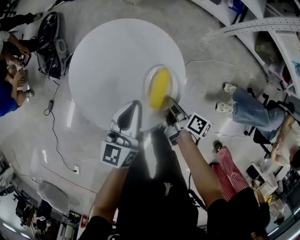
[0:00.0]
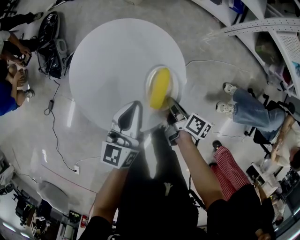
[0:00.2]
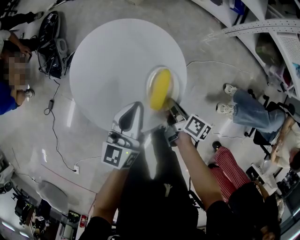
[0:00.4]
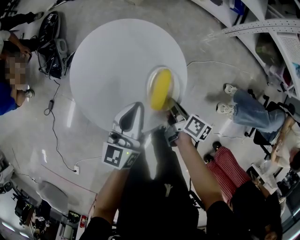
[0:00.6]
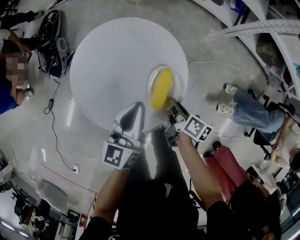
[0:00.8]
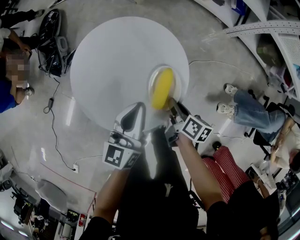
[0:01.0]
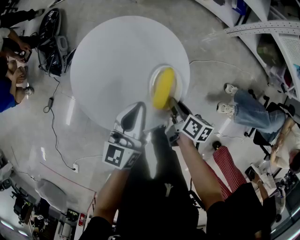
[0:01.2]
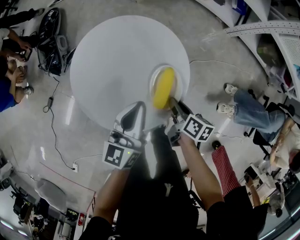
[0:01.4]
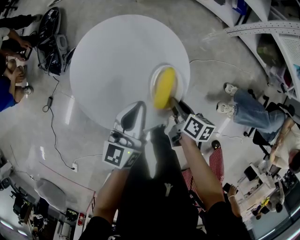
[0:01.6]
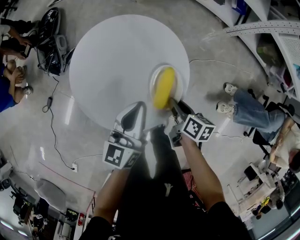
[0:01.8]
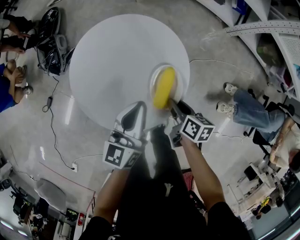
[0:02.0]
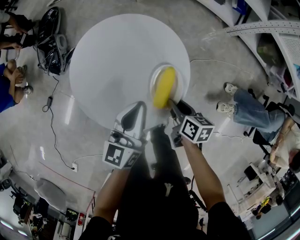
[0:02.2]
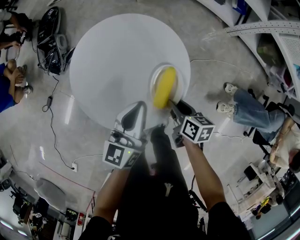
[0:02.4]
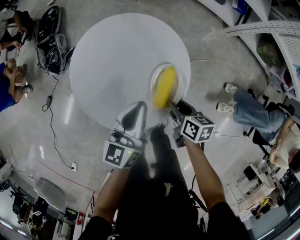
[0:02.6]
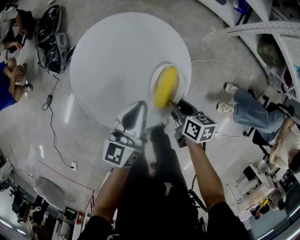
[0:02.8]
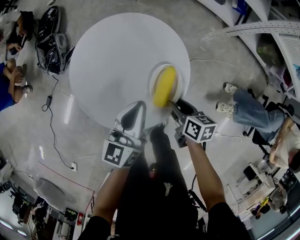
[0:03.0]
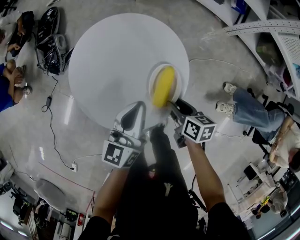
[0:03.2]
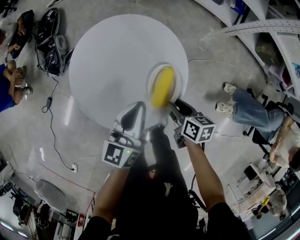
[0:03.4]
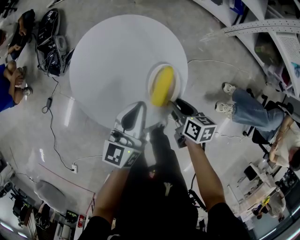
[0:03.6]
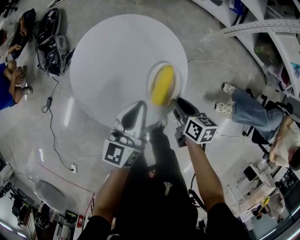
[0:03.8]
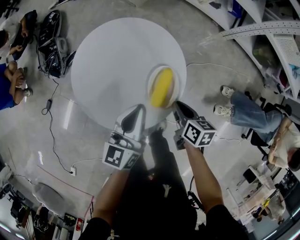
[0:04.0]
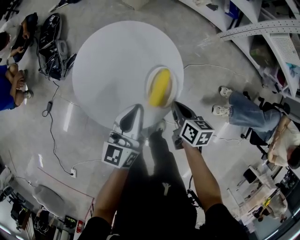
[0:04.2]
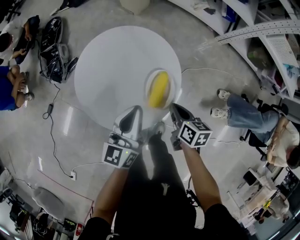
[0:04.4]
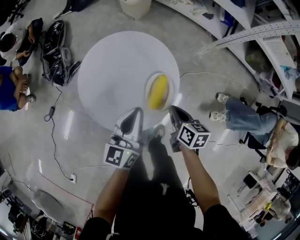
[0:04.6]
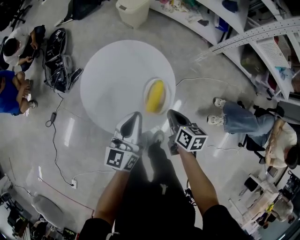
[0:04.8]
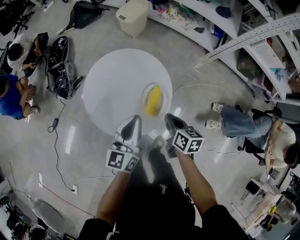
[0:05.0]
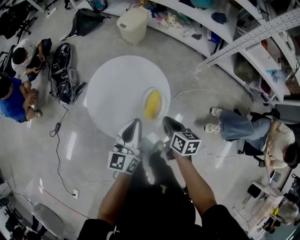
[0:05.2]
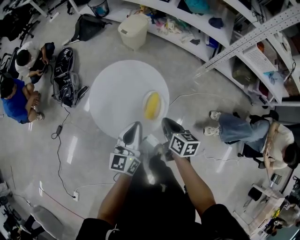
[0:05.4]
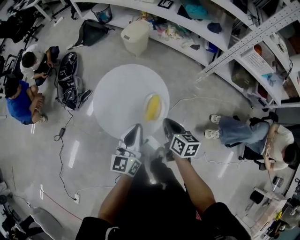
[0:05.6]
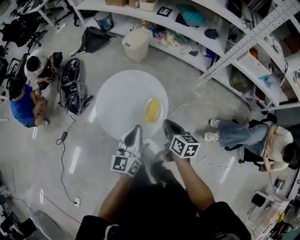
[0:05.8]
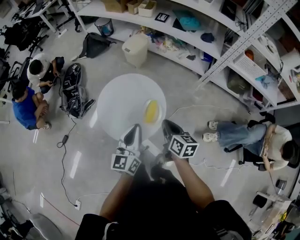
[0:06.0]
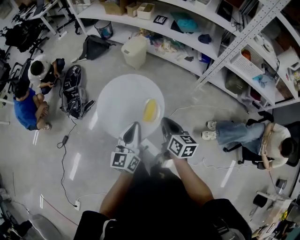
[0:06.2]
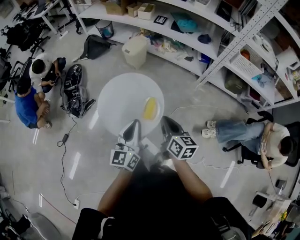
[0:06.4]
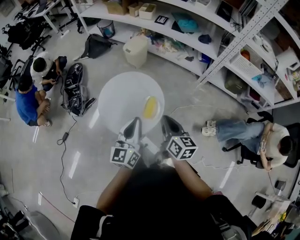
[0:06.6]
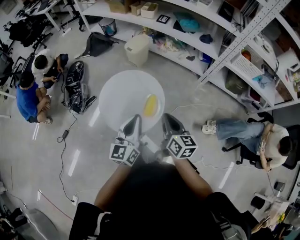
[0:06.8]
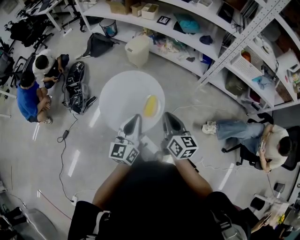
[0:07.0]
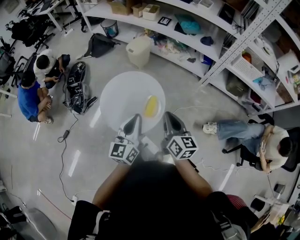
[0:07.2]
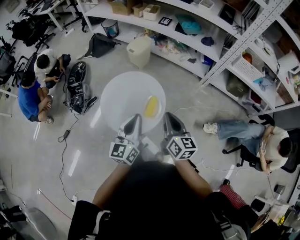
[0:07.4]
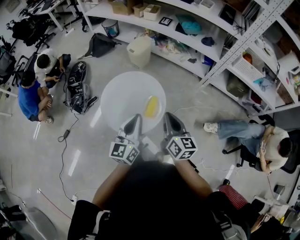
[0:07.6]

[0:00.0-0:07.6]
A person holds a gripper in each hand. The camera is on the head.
3.0 to 4.6 s: The left gripper goes about 5 cm upward.
4.6 to 6.0 s: The left gripper travels upward by roughly 15 cm.
6.0 to 7.6 s: The left gripper shifts roughly 5 cm upward.

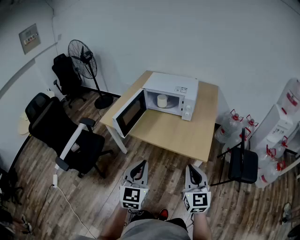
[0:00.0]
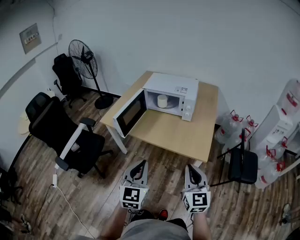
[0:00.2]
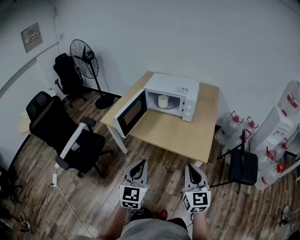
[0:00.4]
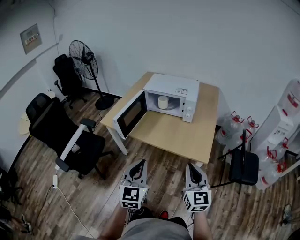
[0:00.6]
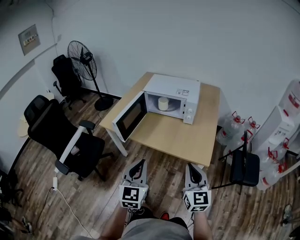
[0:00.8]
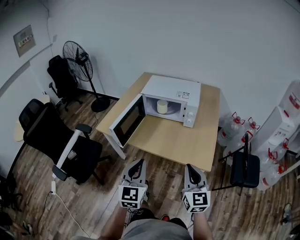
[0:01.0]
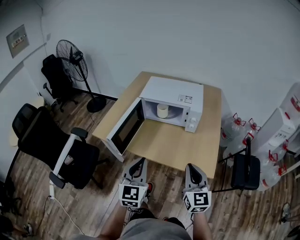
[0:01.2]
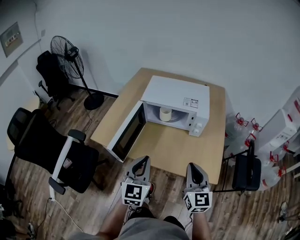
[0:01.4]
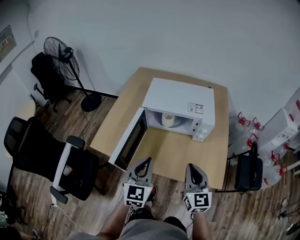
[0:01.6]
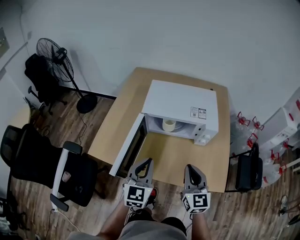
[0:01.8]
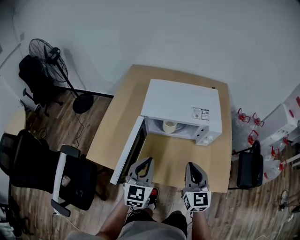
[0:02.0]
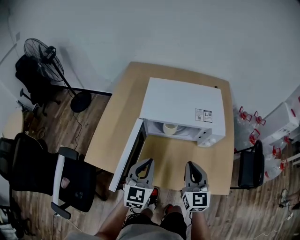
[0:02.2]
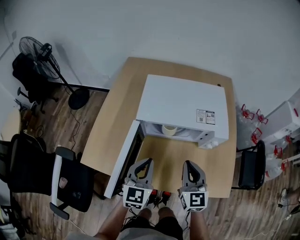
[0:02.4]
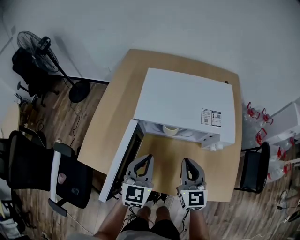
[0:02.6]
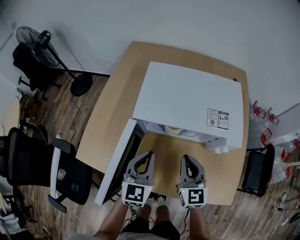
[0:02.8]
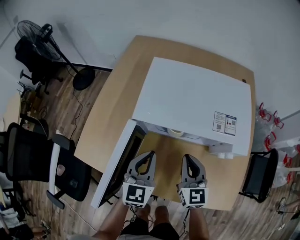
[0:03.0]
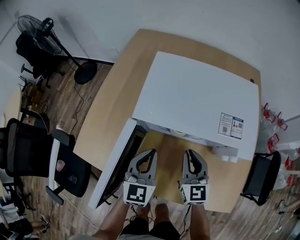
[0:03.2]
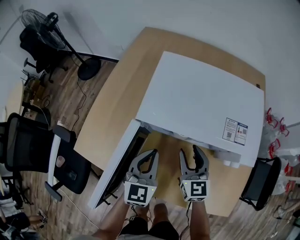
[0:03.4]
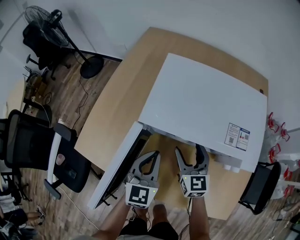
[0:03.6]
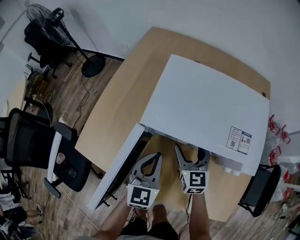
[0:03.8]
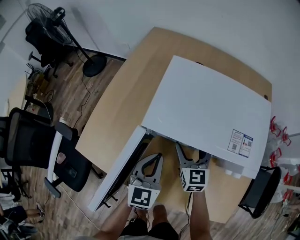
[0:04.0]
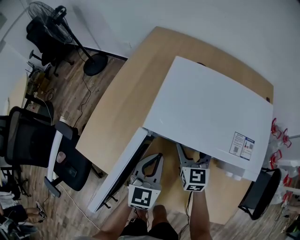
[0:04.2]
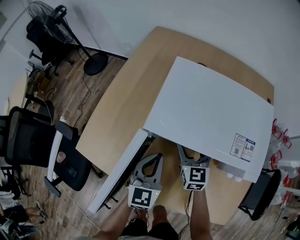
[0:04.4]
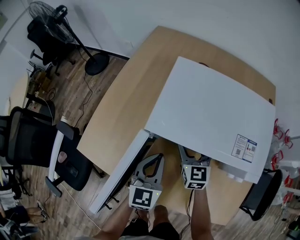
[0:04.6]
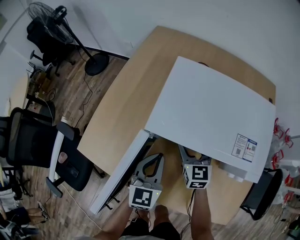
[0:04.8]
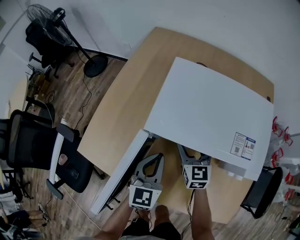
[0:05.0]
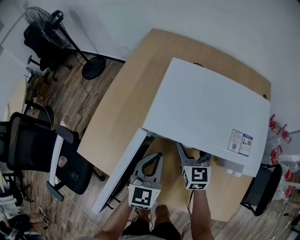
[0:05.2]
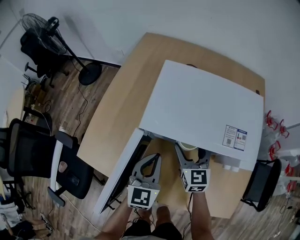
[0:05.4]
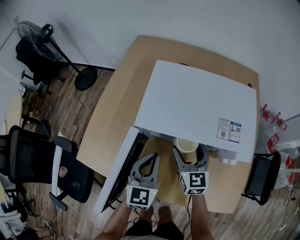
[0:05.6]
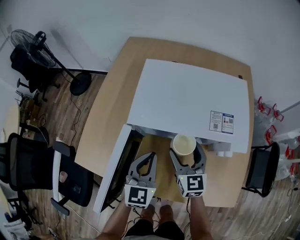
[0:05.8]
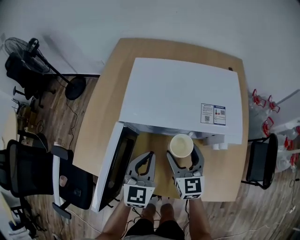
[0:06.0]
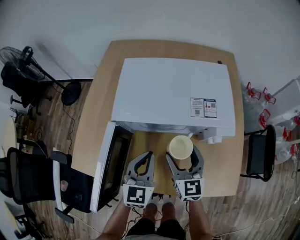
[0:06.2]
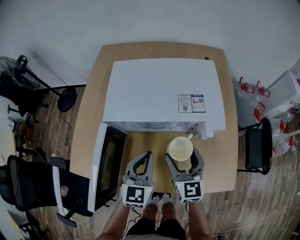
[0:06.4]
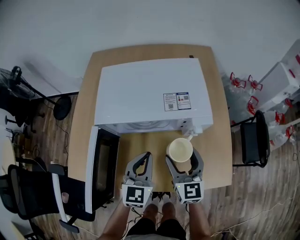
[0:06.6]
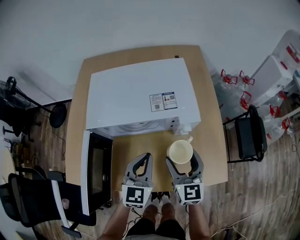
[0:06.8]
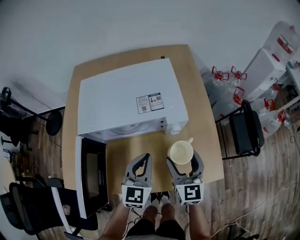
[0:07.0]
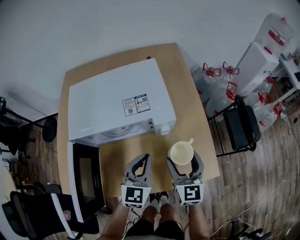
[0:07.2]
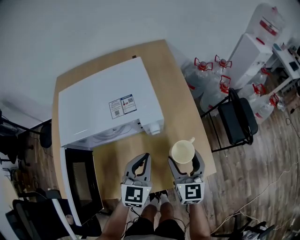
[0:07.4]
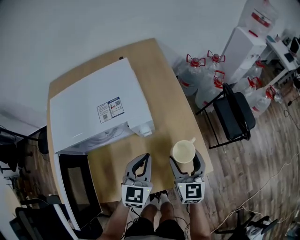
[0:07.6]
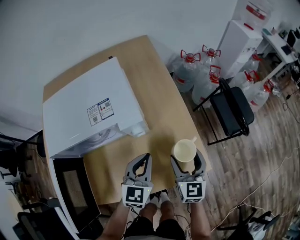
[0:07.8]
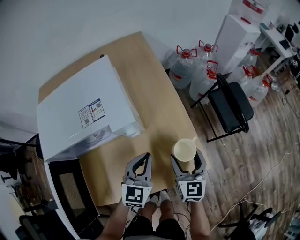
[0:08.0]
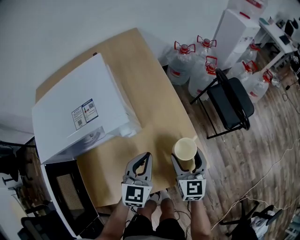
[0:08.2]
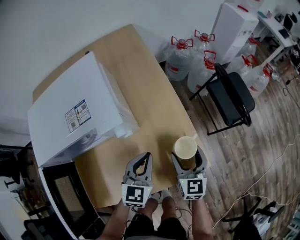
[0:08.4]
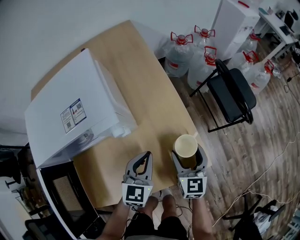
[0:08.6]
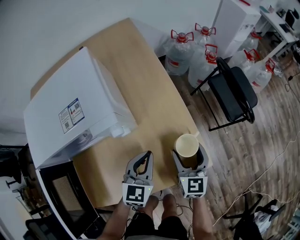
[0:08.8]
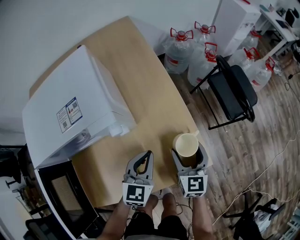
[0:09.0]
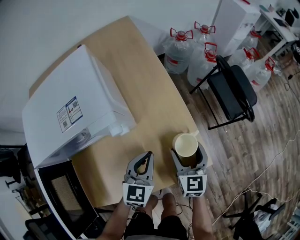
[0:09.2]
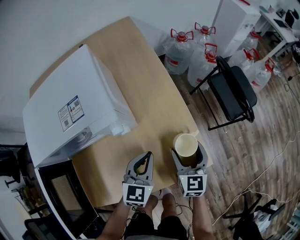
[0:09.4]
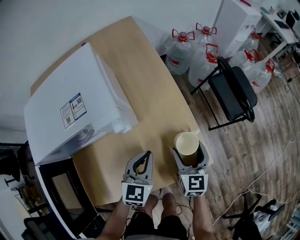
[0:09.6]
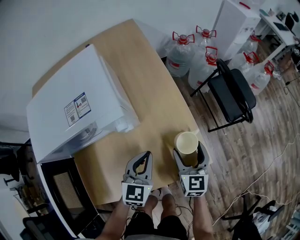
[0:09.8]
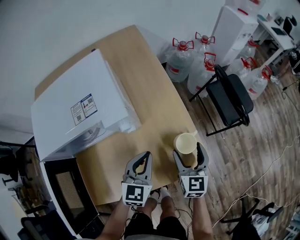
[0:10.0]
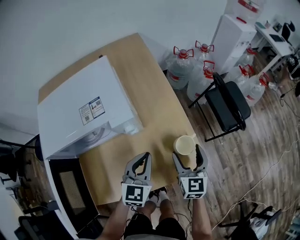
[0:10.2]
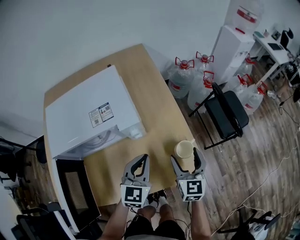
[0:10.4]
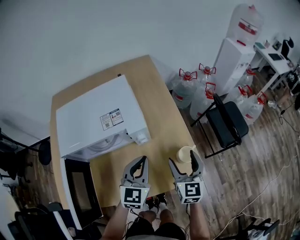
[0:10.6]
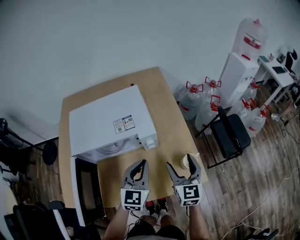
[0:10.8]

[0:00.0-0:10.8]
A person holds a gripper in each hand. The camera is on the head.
0.0 to 1.6 s: Both grippers move forward, roughly 30 cm.
1.6 to 3.0 s: The grippers both shift forward and downward by approximately 25 cm.
3.0 to 4.6 s: The right gripper travels forward and downward by roughly 15 cm, and opens its fingers.
4.6 to 6.2 s: The left gripper goes some 10 cm to the right and backward. The right gripper heads backward, upward and to the right, covering roughly 15 cm.
6.2 to 7.8 s: The right gripper ends up about 30 cm from where it was, and swivels roughly 30 degrees. Meanwhile the left gripper shifts by about 25 cm, and rotates roughly 30 degrees.
7.8 to 9.2 s: The two grippers go about 10 cm downward.
9.2 to 10.8 s: Both grippers travel together upward and to the left, some 20 cm.

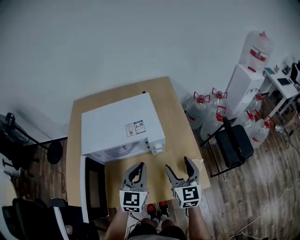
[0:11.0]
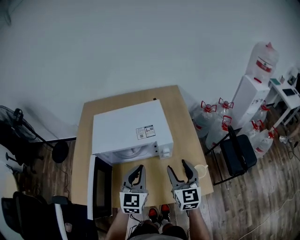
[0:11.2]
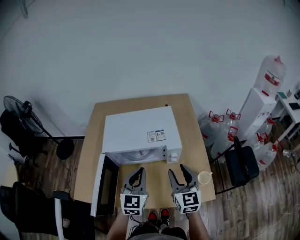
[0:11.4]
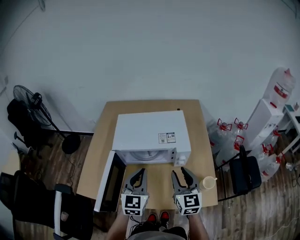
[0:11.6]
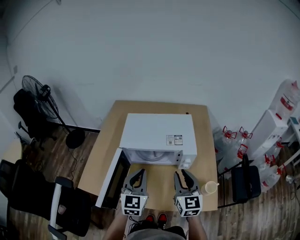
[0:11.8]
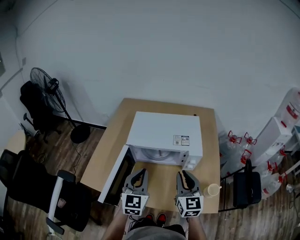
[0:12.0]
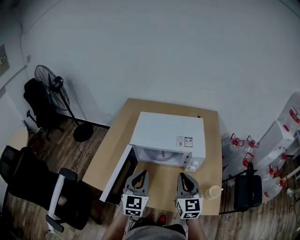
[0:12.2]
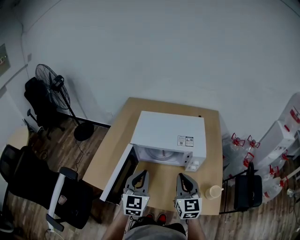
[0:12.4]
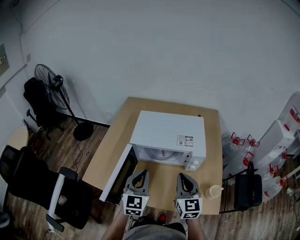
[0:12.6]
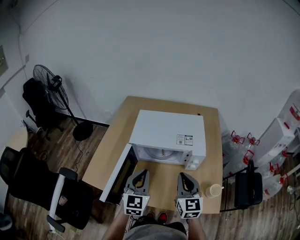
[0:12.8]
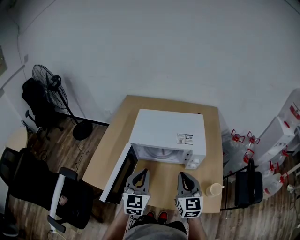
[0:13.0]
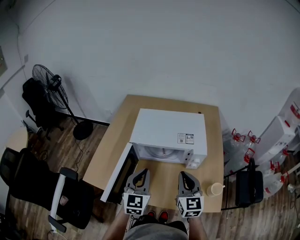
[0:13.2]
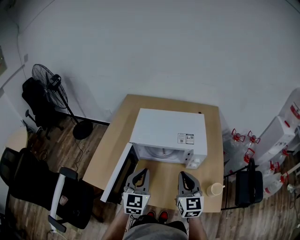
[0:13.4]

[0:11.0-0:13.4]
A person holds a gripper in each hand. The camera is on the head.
11.0 to 12.2 s: The right gripper shifts about 15 cm to the left and upward, rotates approximately 20 degrees, and closes up. Meanwhile the left gripper moves to the left, roughly 15 cm, and changes its angle by roughly 20 degrees.
12.2 to 13.4 s: Both grippers stay about where they are.

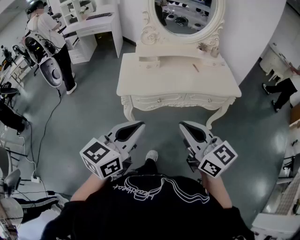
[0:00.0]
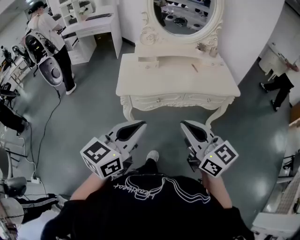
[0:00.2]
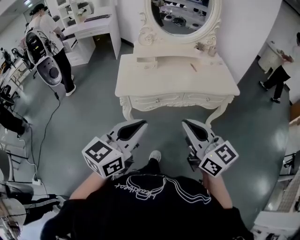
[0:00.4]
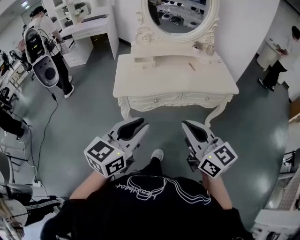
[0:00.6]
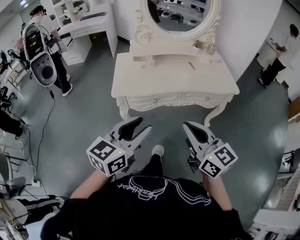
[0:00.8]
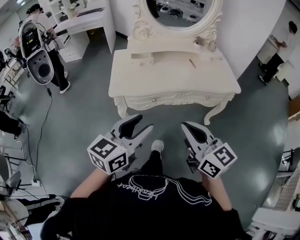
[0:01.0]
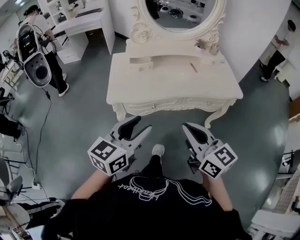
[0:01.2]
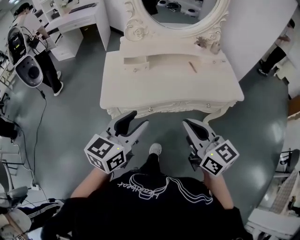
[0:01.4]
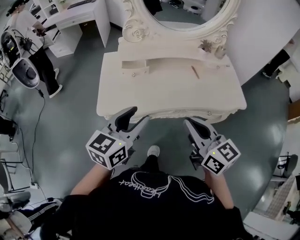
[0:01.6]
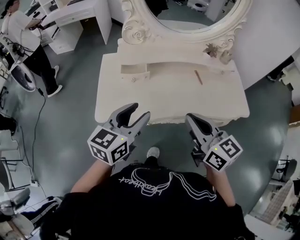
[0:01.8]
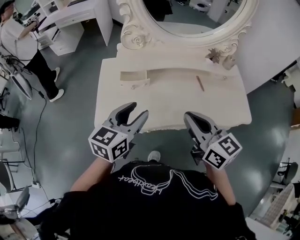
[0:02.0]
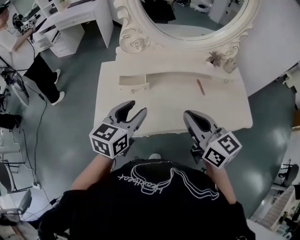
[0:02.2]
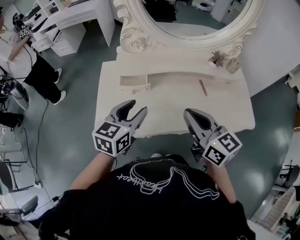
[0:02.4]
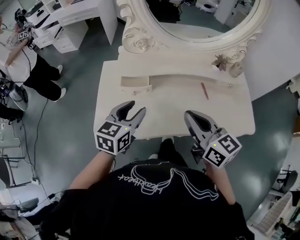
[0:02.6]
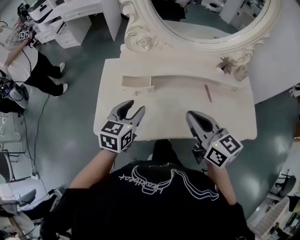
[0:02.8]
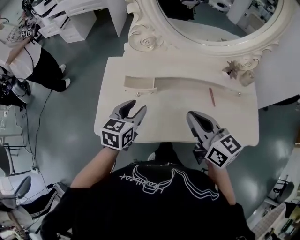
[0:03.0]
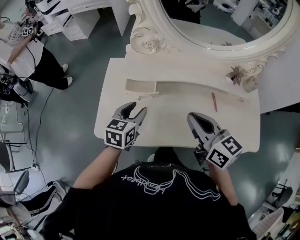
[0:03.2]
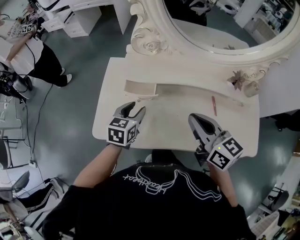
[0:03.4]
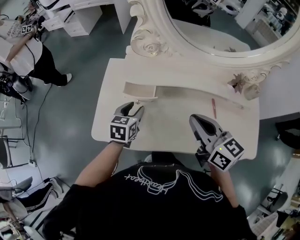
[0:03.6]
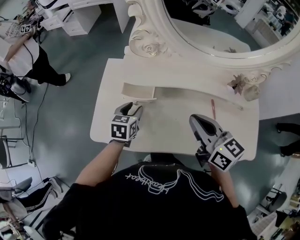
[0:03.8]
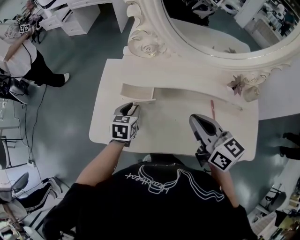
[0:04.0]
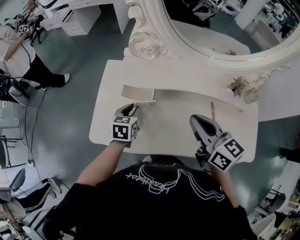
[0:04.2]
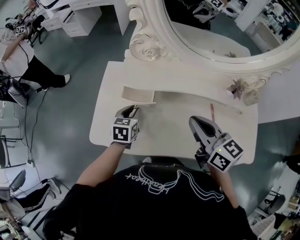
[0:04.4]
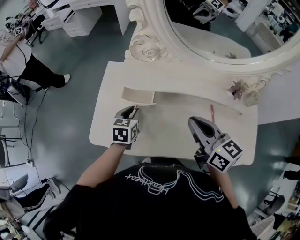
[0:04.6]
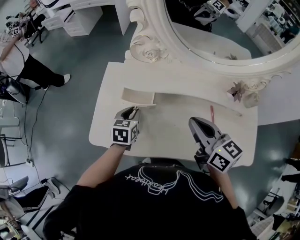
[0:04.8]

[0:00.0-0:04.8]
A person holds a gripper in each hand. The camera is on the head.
0.0 to 1.6 s: The grippers both shift forward by some 25 cm. The left gripper opens its fingers.
1.6 to 3.2 s: The right gripper goes some 25 cm forward; the left gripper goes about 30 cm forward and downward, and turns by approximately 30 degrees.
3.2 to 4.8 s: The left gripper heads downward and forward, covering about 10 cm, and closes up; the right gripper moves roughly 5 cm.
